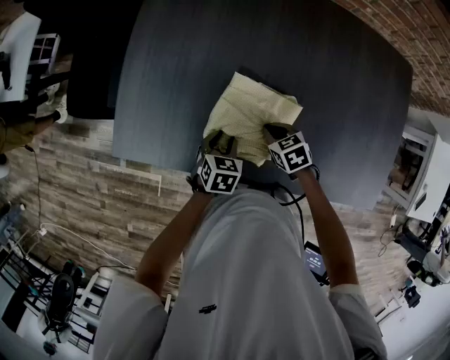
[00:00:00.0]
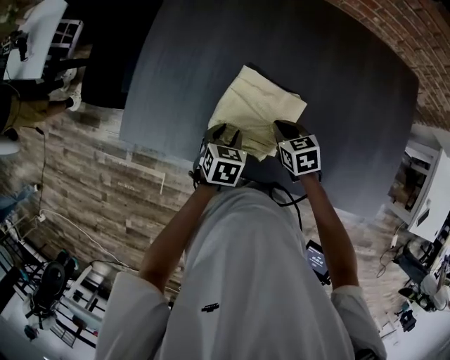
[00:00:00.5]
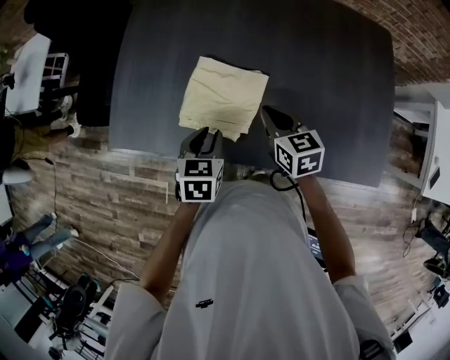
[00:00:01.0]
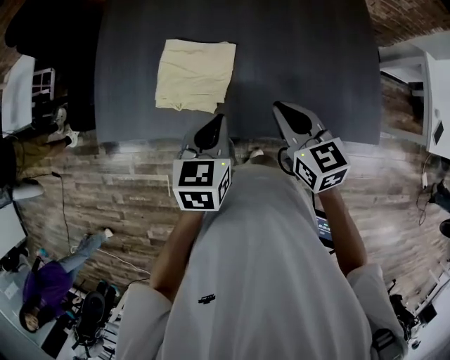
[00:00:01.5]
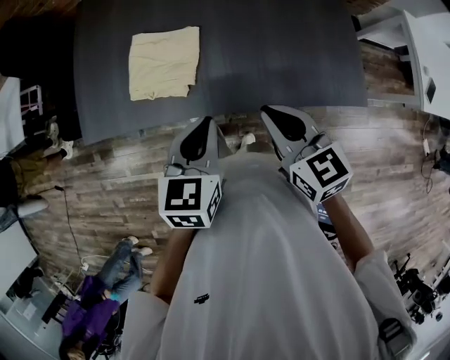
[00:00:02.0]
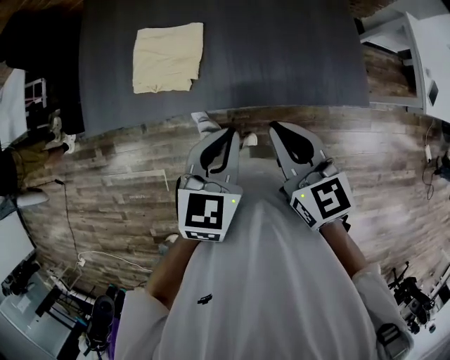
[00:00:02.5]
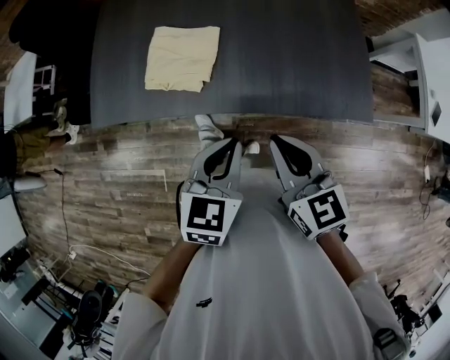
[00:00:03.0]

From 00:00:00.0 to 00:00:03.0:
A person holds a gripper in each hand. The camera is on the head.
From 00:00:00.0 to 00:00:01.5: Both grippers move upward, backward and to the right, roughly 30 cm. The right gripper angles its fingers upward, by some 40 degrees, while the left gripper turns by roughly 20 degrees, and closes.
From 00:00:01.5 to 00:00:03.0: The right gripper is displaced backward and upward by roughly 15 cm. The left gripper shifts some 15 cm backward and to the right.

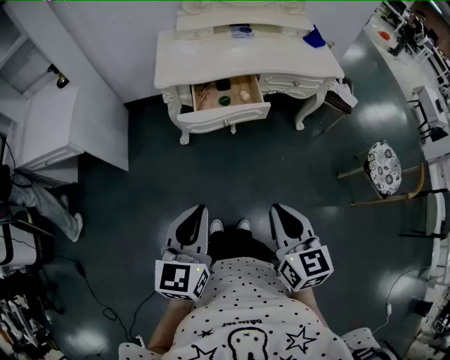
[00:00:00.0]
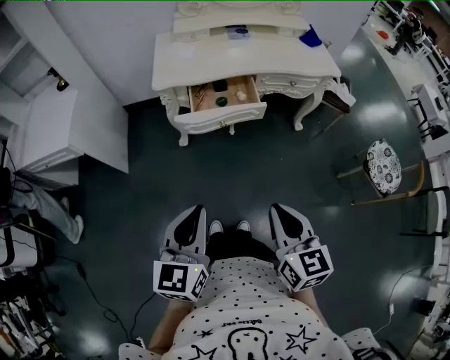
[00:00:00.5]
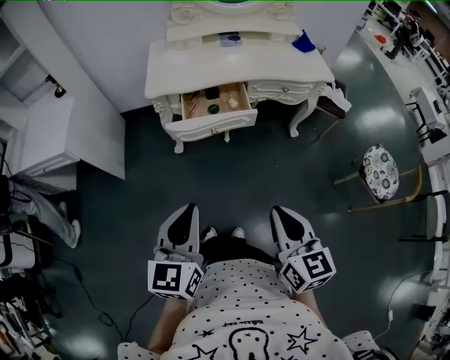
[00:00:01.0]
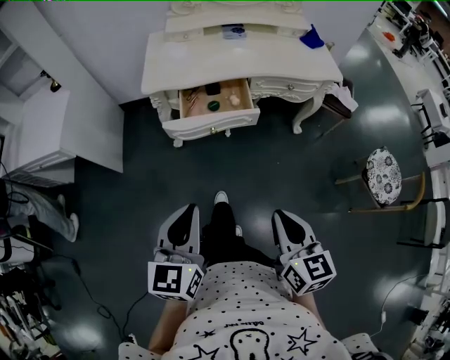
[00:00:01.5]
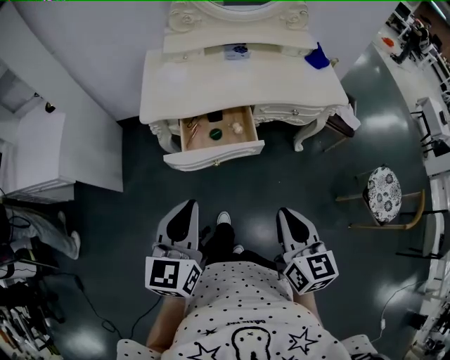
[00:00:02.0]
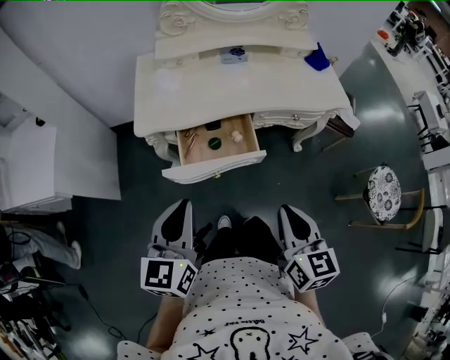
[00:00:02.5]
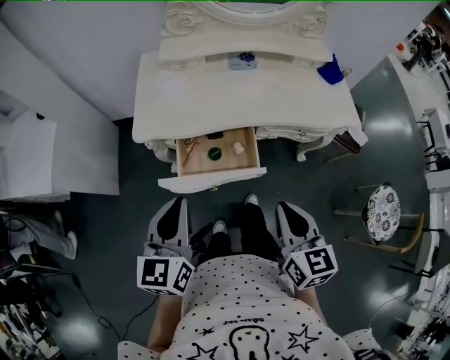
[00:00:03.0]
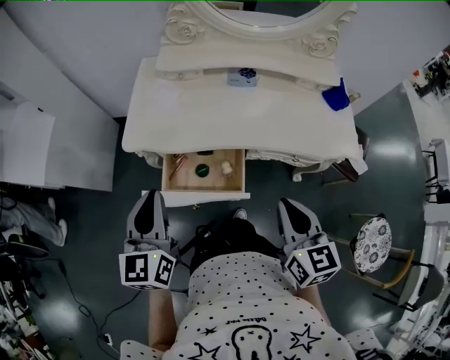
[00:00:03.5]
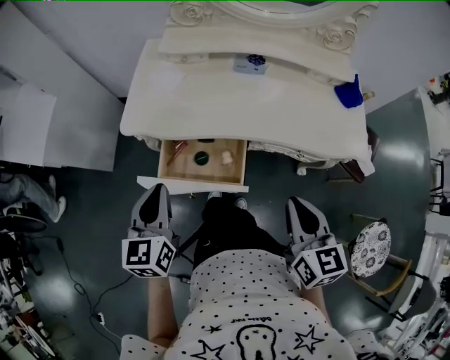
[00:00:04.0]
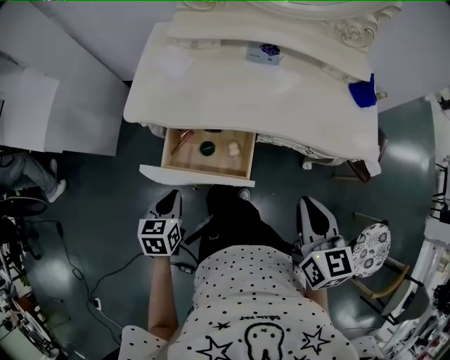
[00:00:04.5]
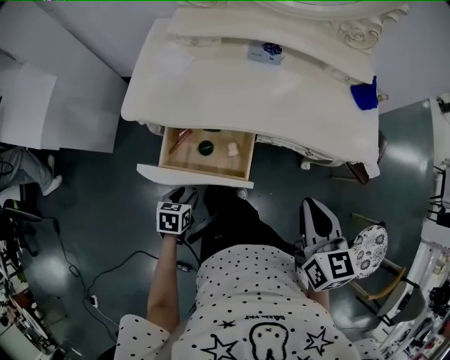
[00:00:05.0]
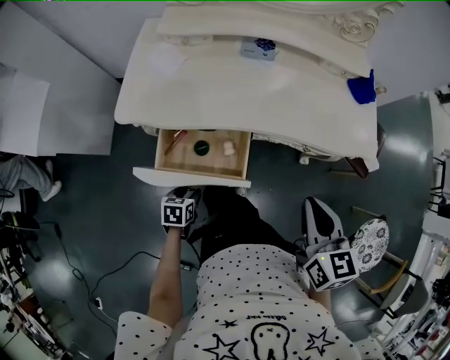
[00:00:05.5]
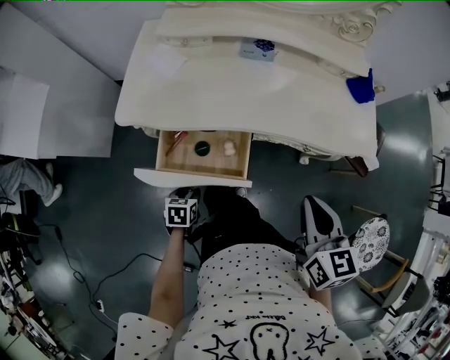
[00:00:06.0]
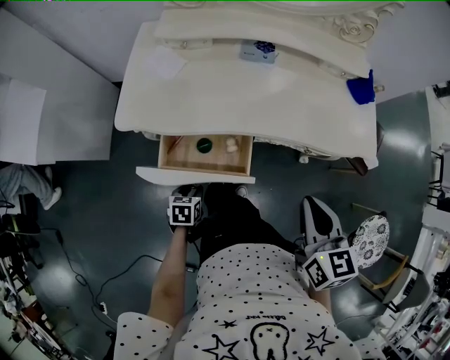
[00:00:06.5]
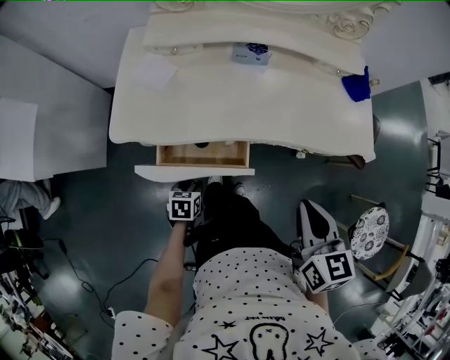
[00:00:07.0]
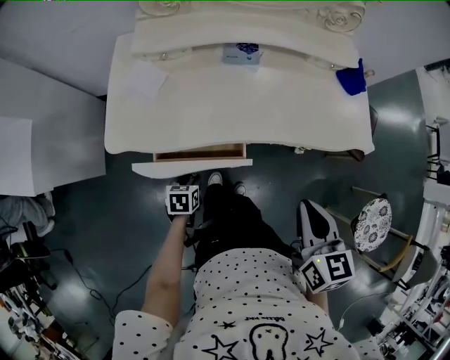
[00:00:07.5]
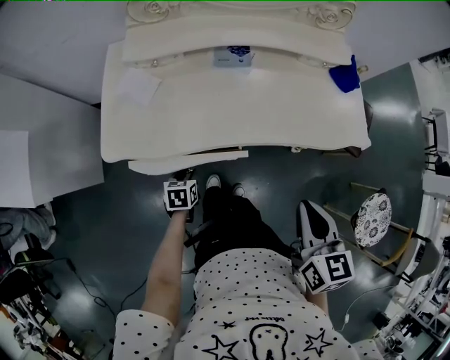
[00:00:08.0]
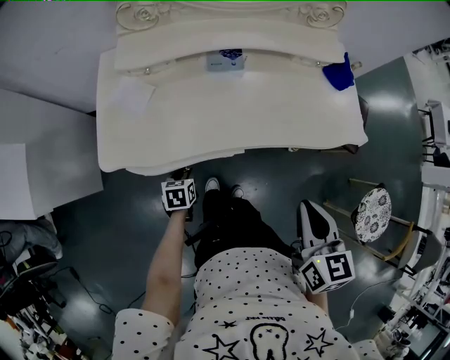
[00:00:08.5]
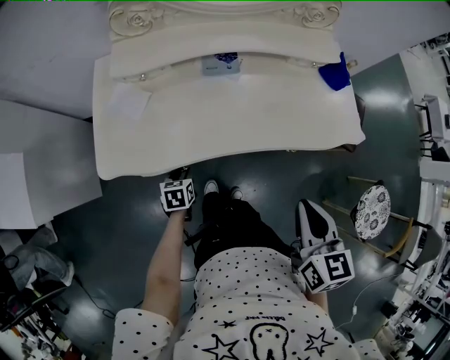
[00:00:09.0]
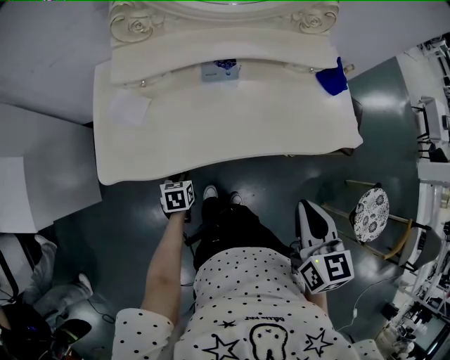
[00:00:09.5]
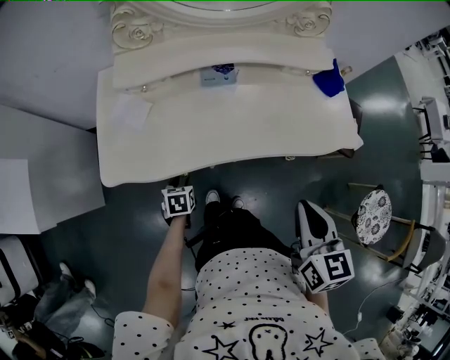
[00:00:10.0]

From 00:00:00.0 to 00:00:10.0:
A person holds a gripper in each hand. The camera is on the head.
From 00:00:00.0 to 00:00:02.0: The right gripper shifts roughly 20 cm forward and to the right. The left gripper moves forward, some 20 cm.
From 00:00:02.0 to 00:00:04.0: The right gripper travels forward and to the right by roughly 30 cm, while the left gripper moves forward, roughly 20 cm, and changes its angle by some 20 degrees.
From 00:00:04.0 to 00:00:06.0: The left gripper shifts some 30 cm downward, tilts its fingers approximately 40 degrees downward, and opens.
From 00:00:06.0 to 00:00:08.0: The left gripper goes some 15 cm forward.
From 00:00:08.0 to 00:00:10.0: There are only small adjustments of the grippers.

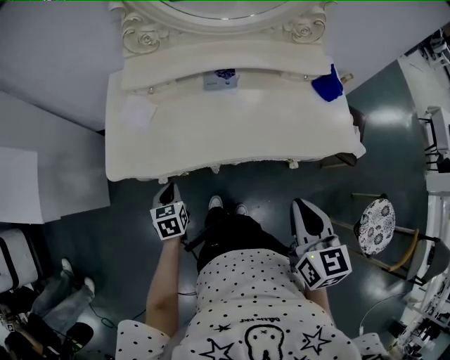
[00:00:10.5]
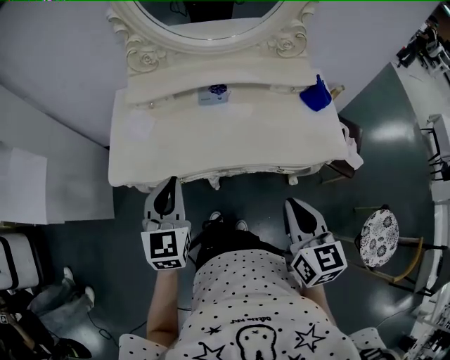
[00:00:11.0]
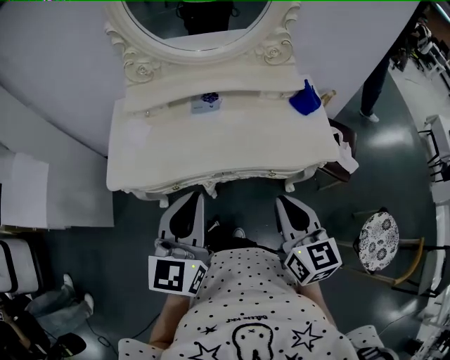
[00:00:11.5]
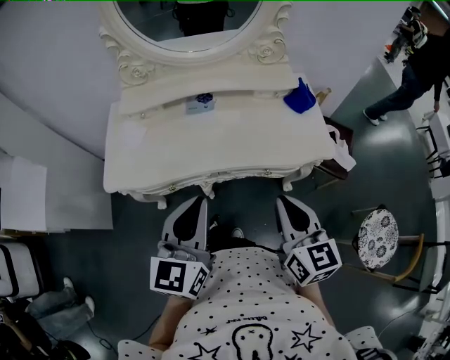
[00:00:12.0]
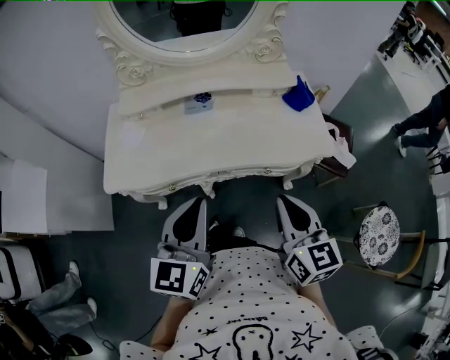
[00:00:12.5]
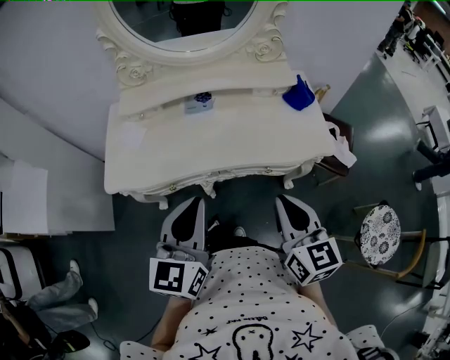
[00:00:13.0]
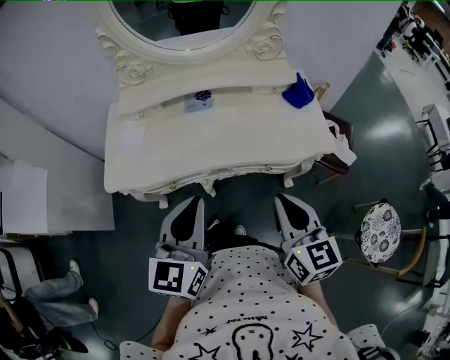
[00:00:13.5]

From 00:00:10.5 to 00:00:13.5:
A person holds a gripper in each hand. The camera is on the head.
From 00:00:10.5 to 00:00:12.0: The right gripper goes roughly 5 cm to the right, while the left gripper goes approximately 35 cm upward and to the right, and tilts its fingers about 40 degrees upward.
From 00:00:12.0 to 00:00:13.5: Both grippers stay put.

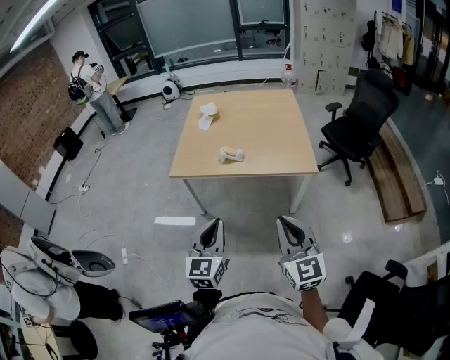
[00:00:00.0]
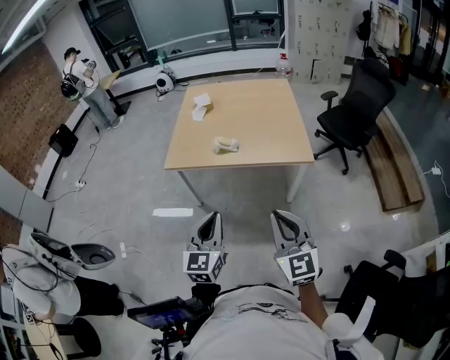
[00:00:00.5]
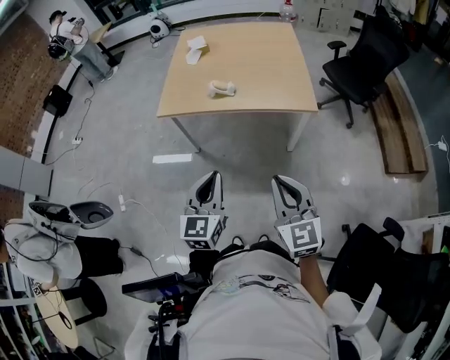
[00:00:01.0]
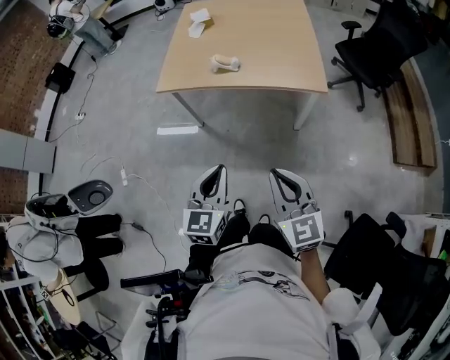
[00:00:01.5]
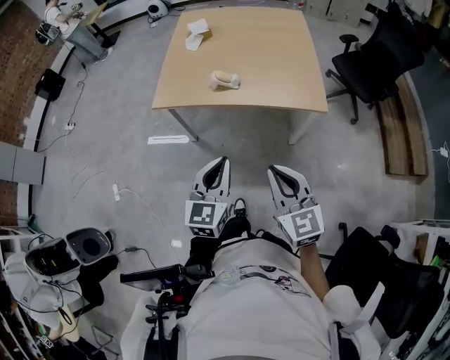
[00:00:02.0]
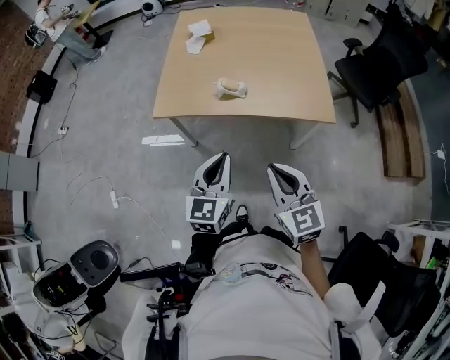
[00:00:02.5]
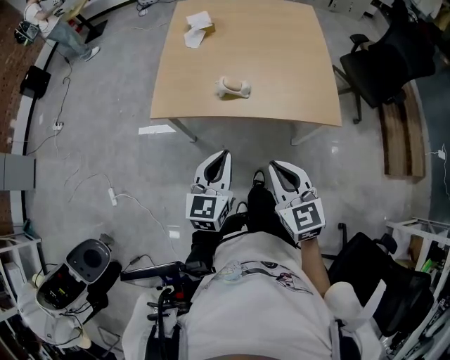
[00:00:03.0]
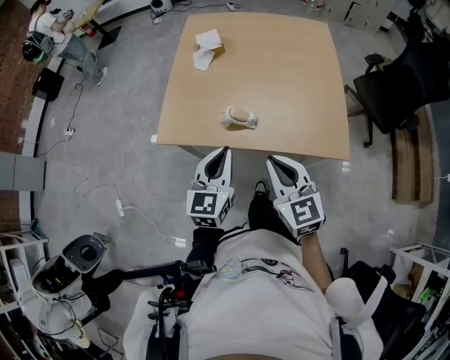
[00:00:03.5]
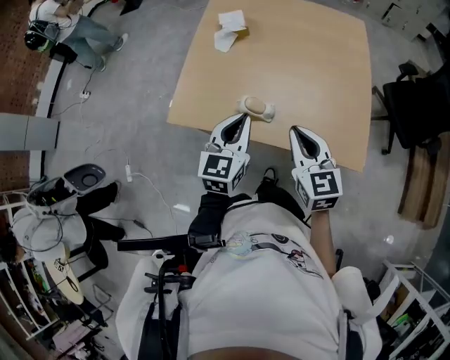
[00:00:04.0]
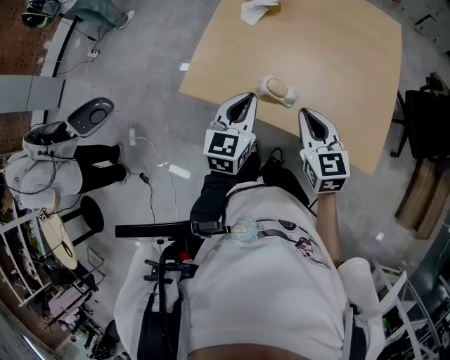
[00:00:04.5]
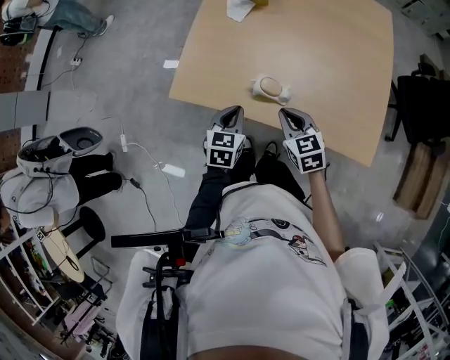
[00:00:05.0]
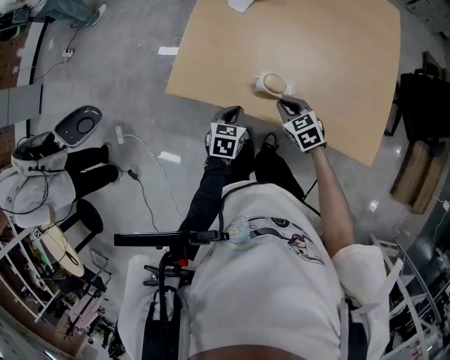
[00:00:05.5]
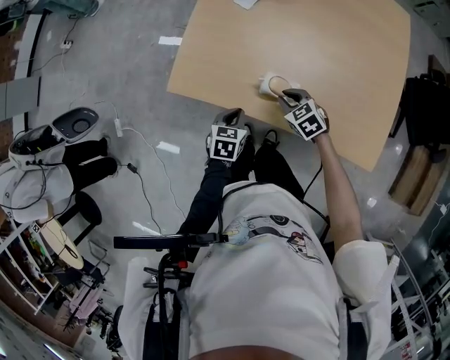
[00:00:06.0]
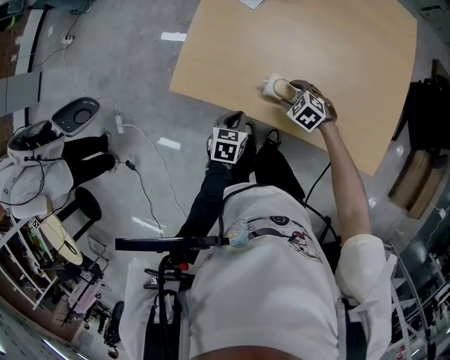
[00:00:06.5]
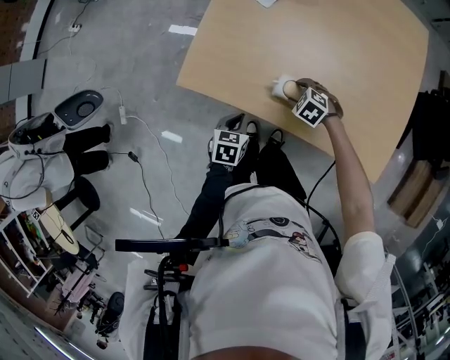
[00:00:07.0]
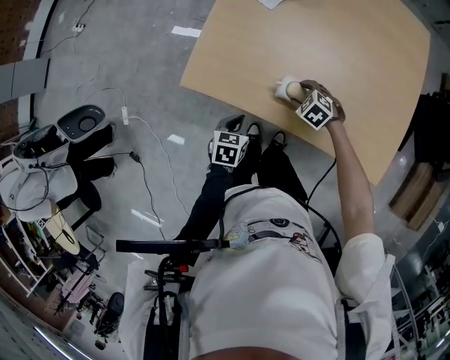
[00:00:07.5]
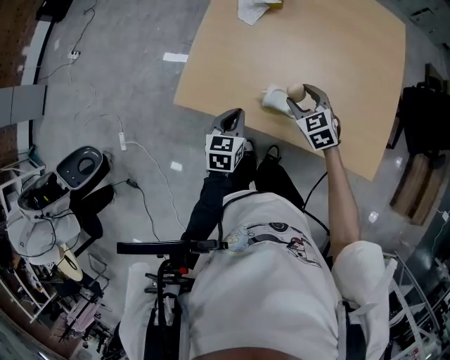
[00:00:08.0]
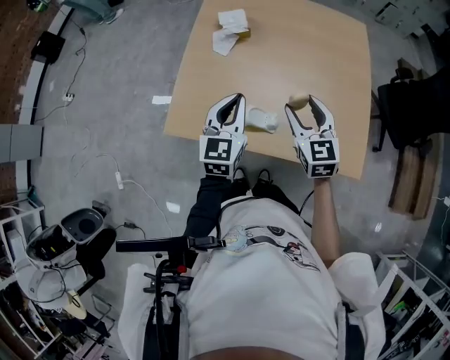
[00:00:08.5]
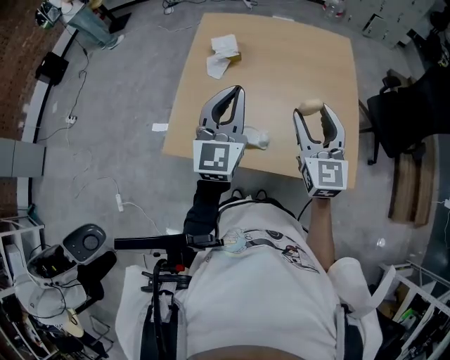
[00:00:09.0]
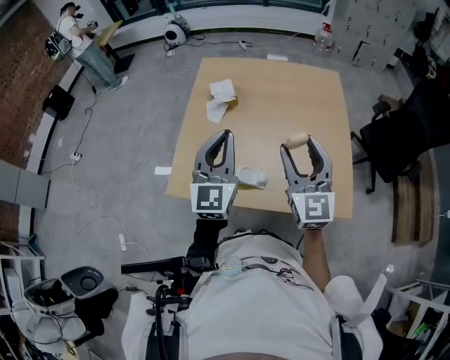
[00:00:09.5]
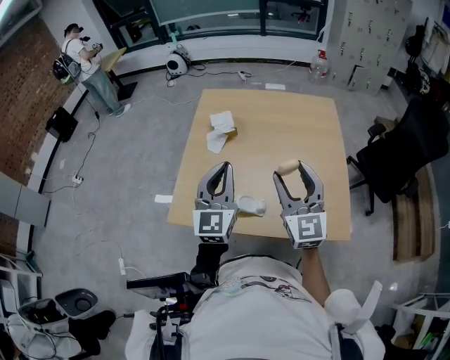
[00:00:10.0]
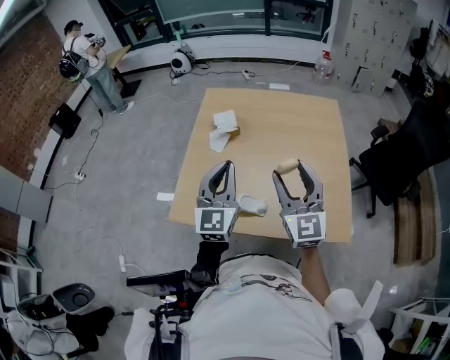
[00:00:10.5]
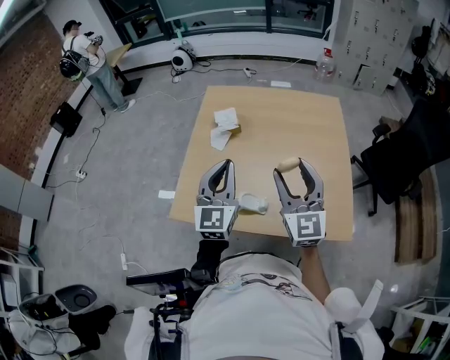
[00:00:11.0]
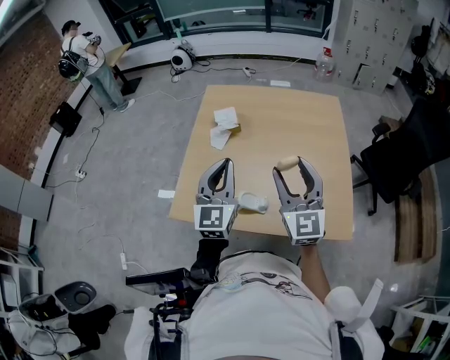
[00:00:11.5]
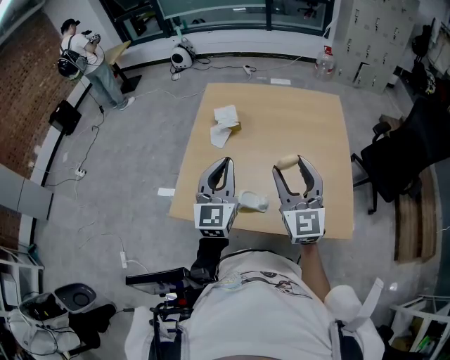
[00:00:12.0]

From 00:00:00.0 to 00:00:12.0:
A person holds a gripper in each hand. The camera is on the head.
From 00:00:00.0 to 00:00:02.0: The left gripper moves forward, downward and to the right, roughly 10 cm. The right gripper travels forward and downward by some 10 cm.
From 00:00:02.0 to 00:00:04.0: The grippers both shift forward by approximately 40 cm.
From 00:00:04.0 to 00:00:06.0: The right gripper shifts approximately 30 cm downward and forward, and tilts its fingers roughly 40 degrees downward, while the left gripper travels downward and to the left by about 30 cm, and tips its fingers downward by some 40 degrees.
From 00:00:06.0 to 00:00:08.0: The two grippers go about 10 cm upward. The right gripper opens.
From 00:00:08.0 to 00:00:10.0: Both grippers travel together upward, roughly 30 cm. The left gripper tilts its fingers roughly 40 degrees upward. The right gripper tips its fingers upward by some 50 degrees.
From 00:00:10.0 to 00:00:12.0: The grippers move only a little.
